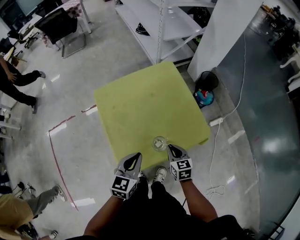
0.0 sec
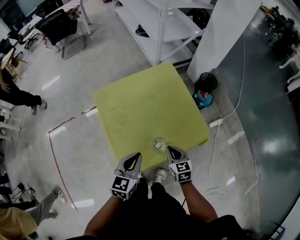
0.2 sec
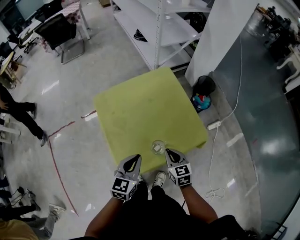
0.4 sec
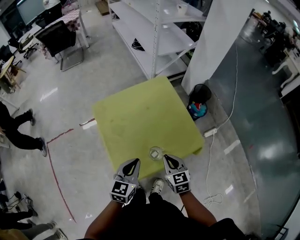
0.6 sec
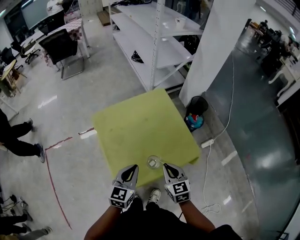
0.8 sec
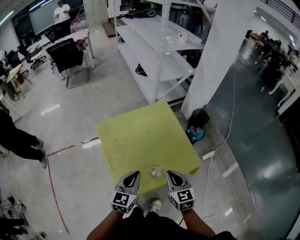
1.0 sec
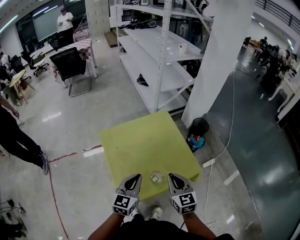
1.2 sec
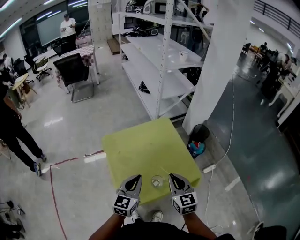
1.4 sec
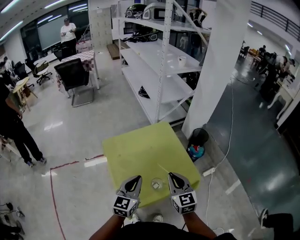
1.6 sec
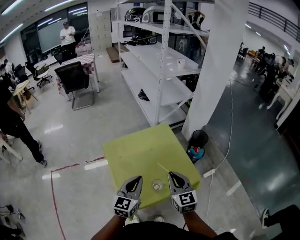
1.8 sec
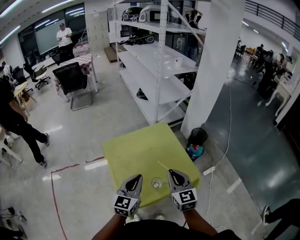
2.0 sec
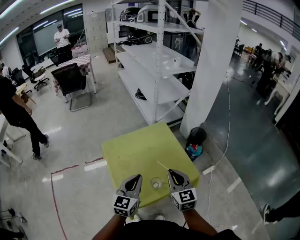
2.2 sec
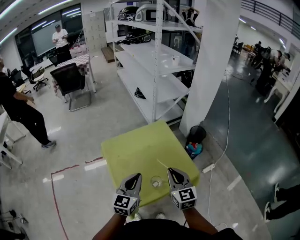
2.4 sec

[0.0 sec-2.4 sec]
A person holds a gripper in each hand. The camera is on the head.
0.0 sec to 1.2 sec: The left gripper heads upward, covering about 10 cm. Meanwhile the right gripper travels upward by about 20 cm.
1.2 sec to 2.4 sec: The grippers both shift upward by roughly 5 cm.

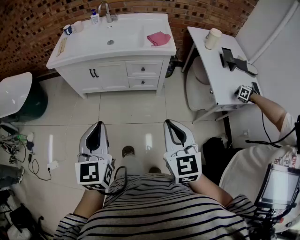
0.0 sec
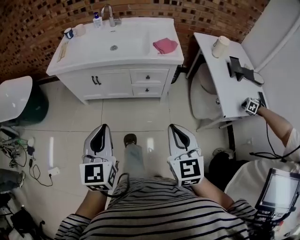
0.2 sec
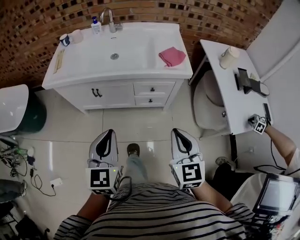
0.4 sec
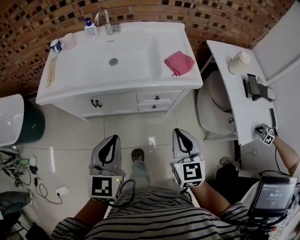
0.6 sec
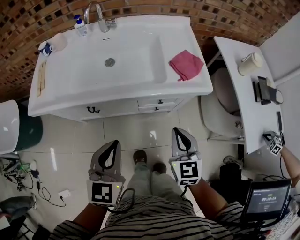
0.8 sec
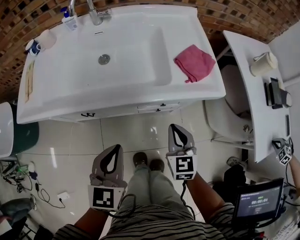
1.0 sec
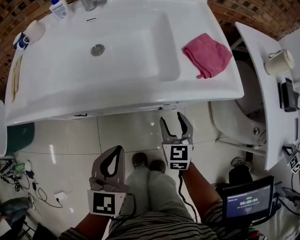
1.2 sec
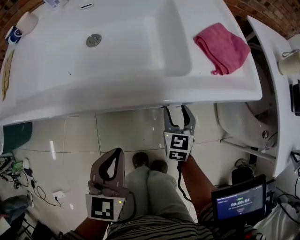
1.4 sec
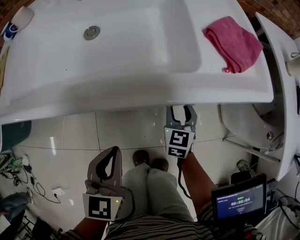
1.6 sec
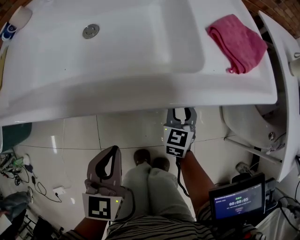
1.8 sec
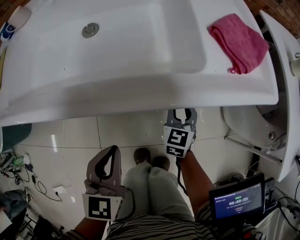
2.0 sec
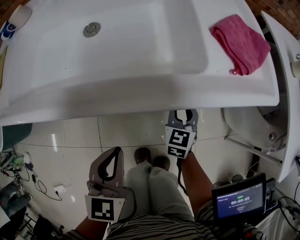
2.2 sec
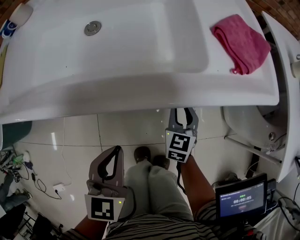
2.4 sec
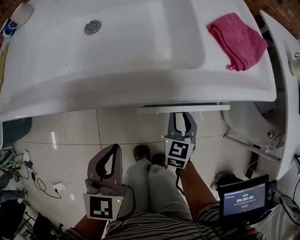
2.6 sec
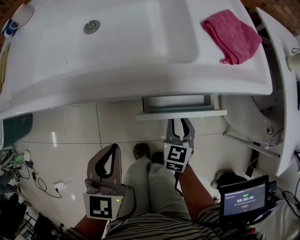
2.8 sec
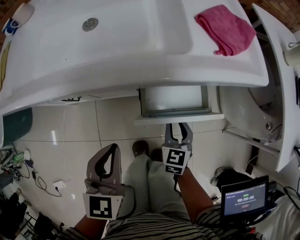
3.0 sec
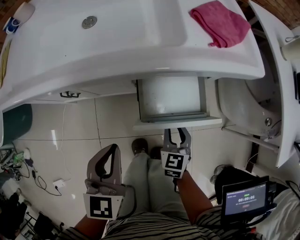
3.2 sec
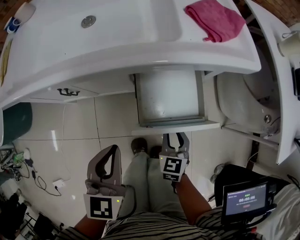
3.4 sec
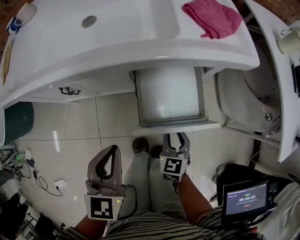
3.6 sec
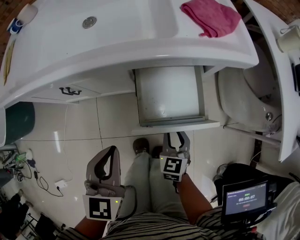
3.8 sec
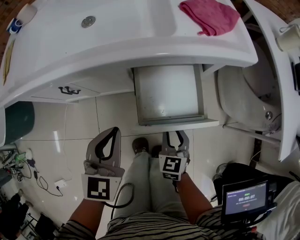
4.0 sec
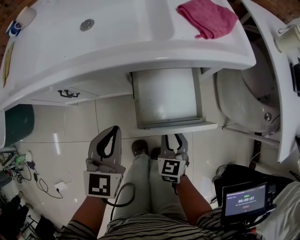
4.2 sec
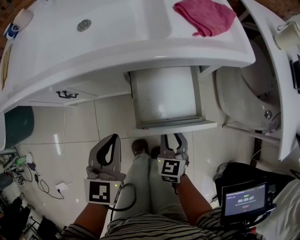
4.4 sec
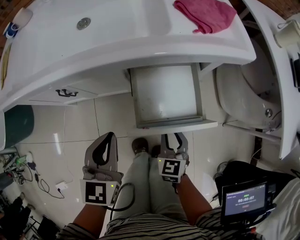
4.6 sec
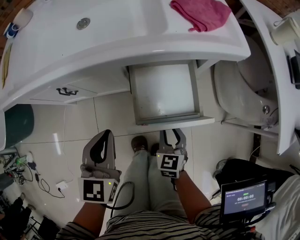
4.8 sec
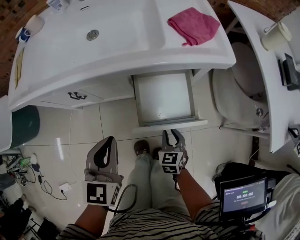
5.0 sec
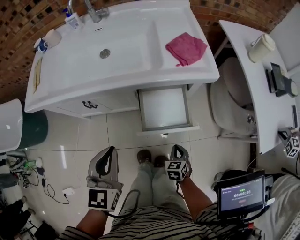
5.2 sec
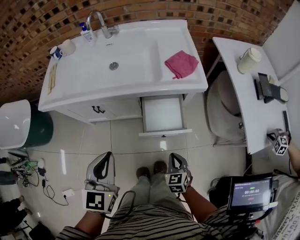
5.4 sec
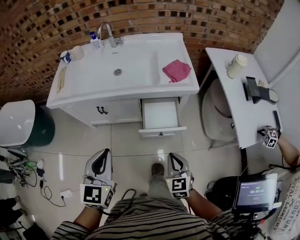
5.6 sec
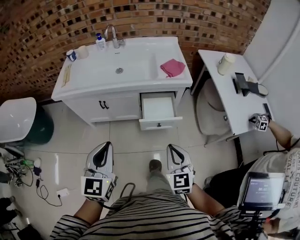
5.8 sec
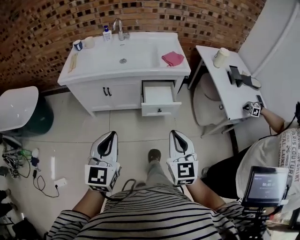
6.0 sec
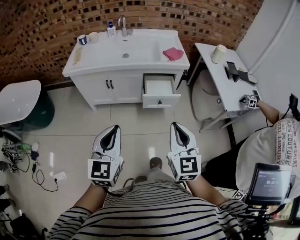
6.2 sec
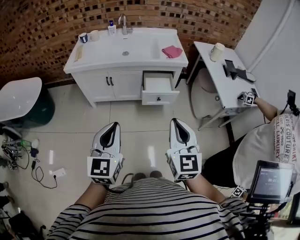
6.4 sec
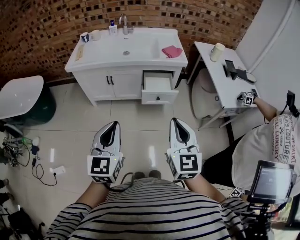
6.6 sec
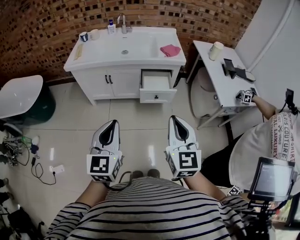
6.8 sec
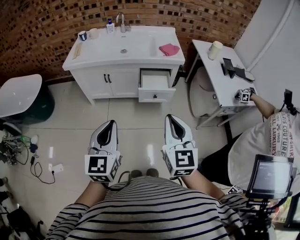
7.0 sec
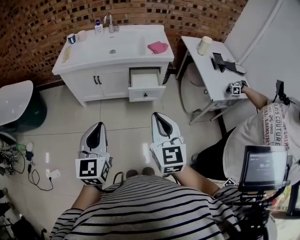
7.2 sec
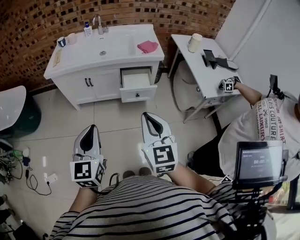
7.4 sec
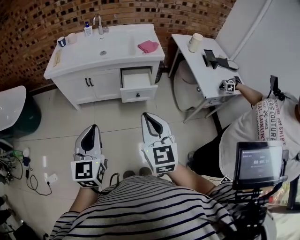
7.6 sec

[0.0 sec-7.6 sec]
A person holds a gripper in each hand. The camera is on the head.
0.0 sec to 1.6 sec: Both grippers are carried forward, some 50 cm. Both grippers move downward, approximately 40 cm. The right gripper rotates roughly 20 degrees, and opens its fingers, while the left gripper swivels roughly 20 degrees.
1.6 sec to 3.0 sec: The right gripper moves backward, roughly 10 cm.
3.0 sec to 4.6 sec: The right gripper heads backward, covering approximately 10 cm.
4.6 sec to 6.0 sec: The right gripper moves upward and backward, approximately 50 cm, changes its angle by approximately 30 degrees, and closes; the left gripper shifts about 50 cm backward and upward.
6.0 sec to 7.6 sec: The left gripper shifts approximately 10 cm backward, while the right gripper heads backward and upward, covering approximately 10 cm.

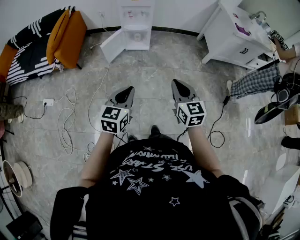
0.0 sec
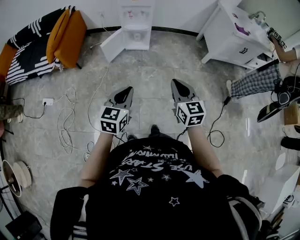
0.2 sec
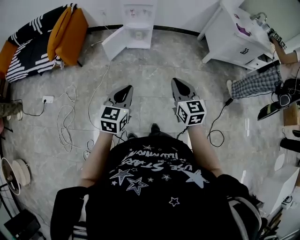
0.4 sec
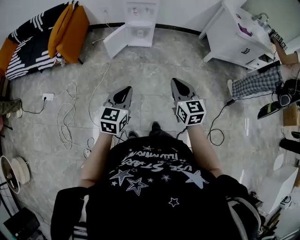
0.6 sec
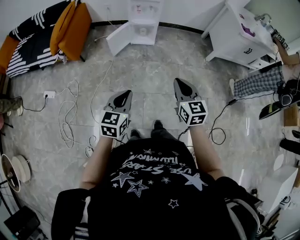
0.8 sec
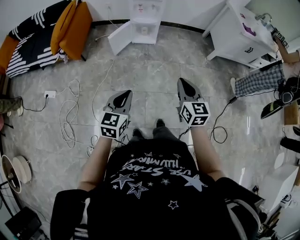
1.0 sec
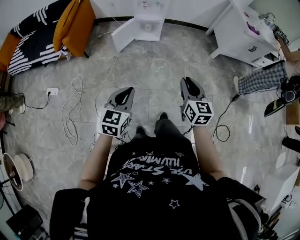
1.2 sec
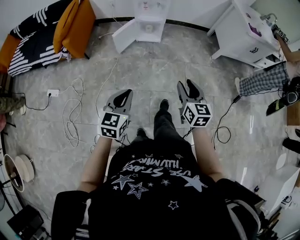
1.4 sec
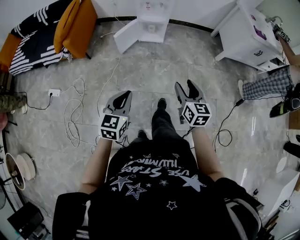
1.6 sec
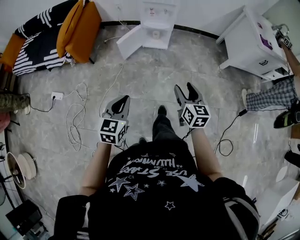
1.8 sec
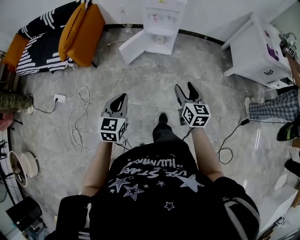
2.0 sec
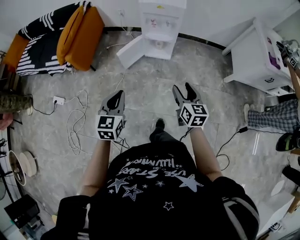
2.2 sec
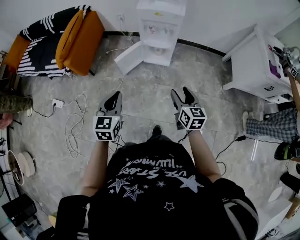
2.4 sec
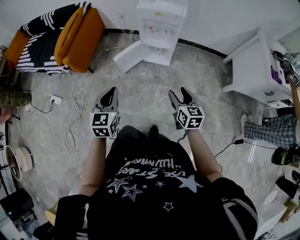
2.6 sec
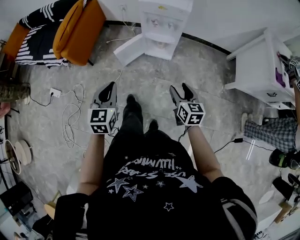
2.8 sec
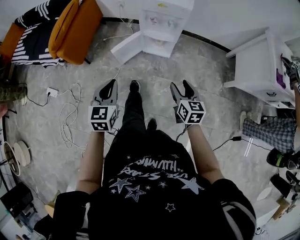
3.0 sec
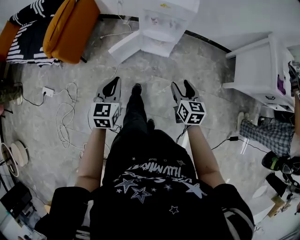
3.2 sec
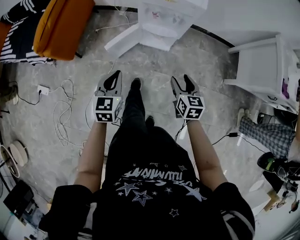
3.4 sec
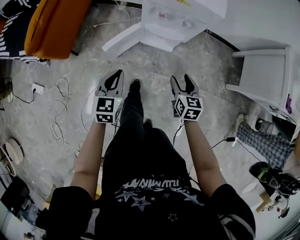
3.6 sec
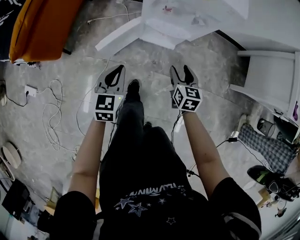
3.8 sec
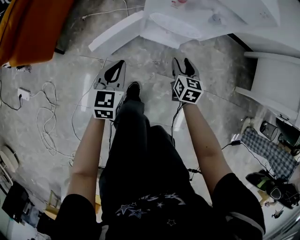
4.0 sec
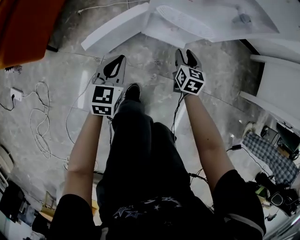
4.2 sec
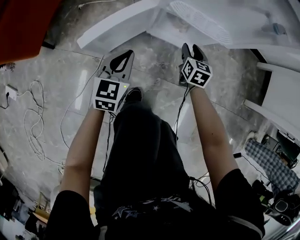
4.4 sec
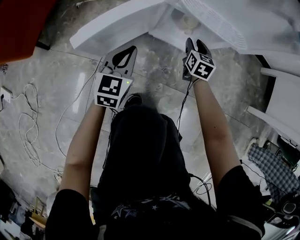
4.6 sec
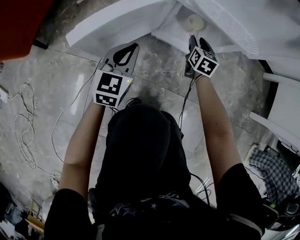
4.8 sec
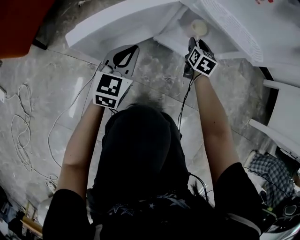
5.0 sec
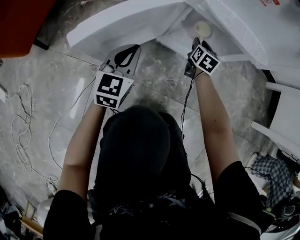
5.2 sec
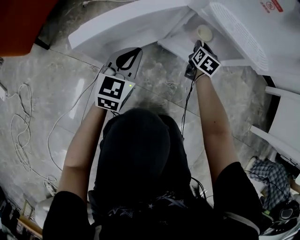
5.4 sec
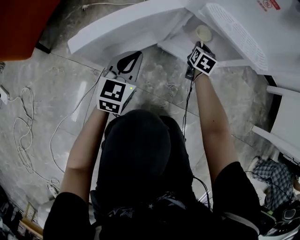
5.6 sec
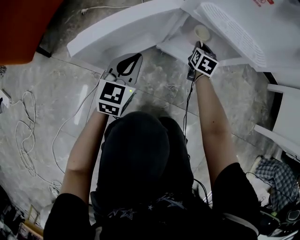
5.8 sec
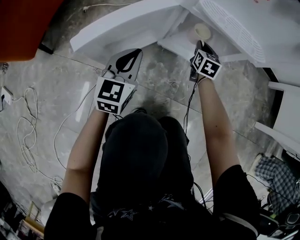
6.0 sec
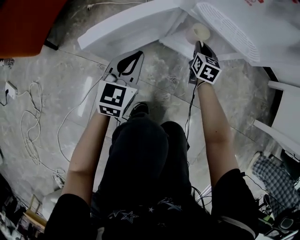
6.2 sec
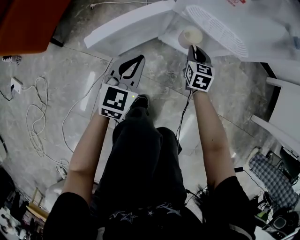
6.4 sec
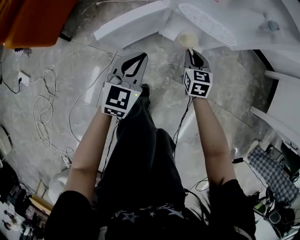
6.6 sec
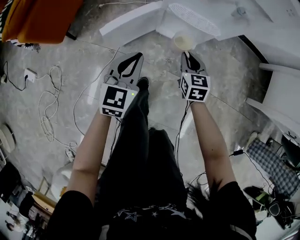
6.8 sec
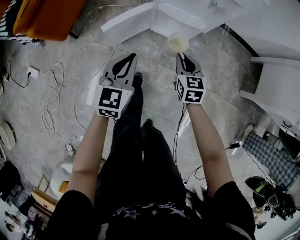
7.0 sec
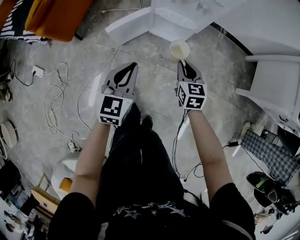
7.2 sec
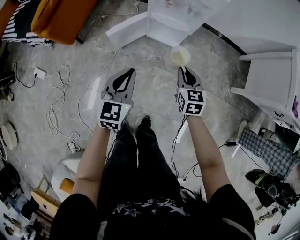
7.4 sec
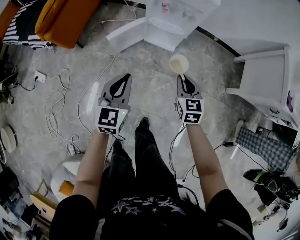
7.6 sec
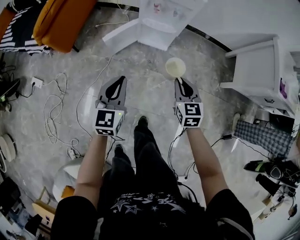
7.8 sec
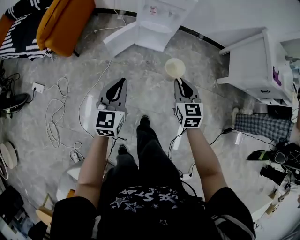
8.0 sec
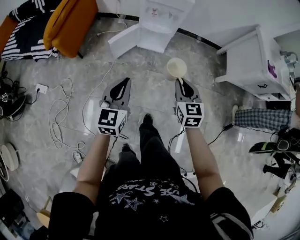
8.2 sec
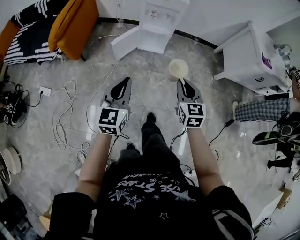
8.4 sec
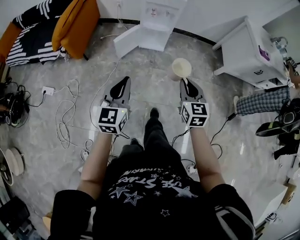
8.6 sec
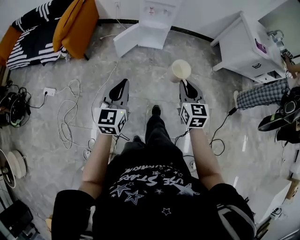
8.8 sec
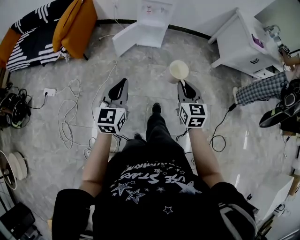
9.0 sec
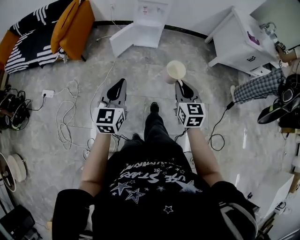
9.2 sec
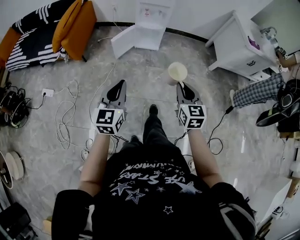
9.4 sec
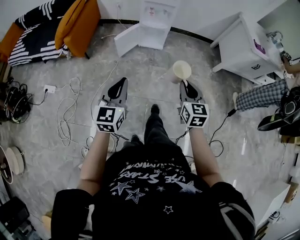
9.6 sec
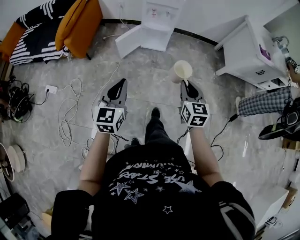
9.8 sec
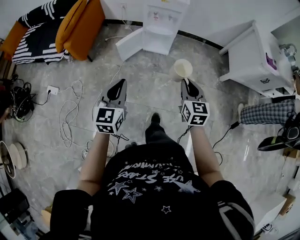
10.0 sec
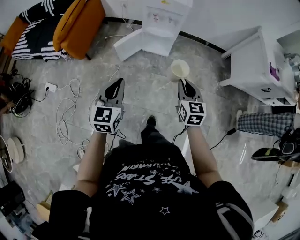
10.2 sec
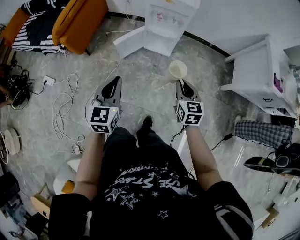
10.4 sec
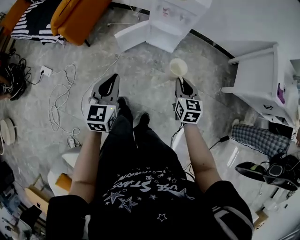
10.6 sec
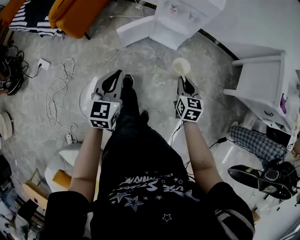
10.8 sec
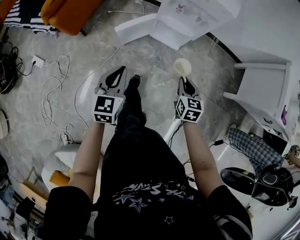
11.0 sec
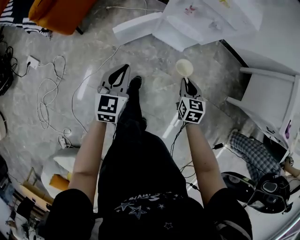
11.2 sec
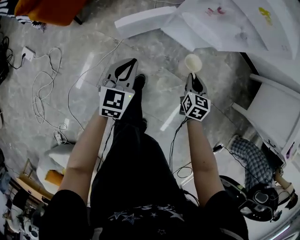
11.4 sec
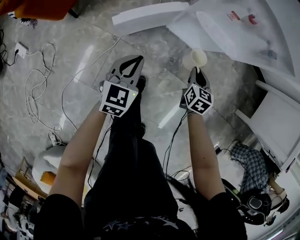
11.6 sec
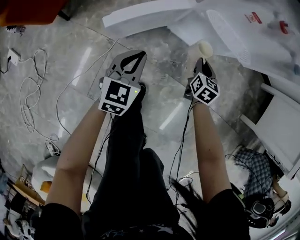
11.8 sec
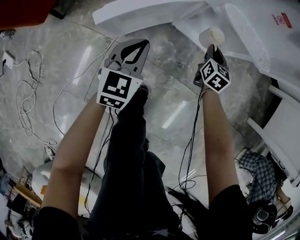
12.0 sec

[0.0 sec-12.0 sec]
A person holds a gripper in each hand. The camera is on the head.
0.0 sec to 1.6 sec: The right gripper is displaced to the left and downward by about 10 cm, and opens; the left gripper goes some 10 cm to the left.
1.6 sec to 3.0 sec: Both grippers move forward, roughly 30 cm. The left gripper swivels some 20 degrees.
3.0 sec to 4.4 sec: The grippers both shift downward and forward by roughly 60 cm.
4.4 sec to 6.0 sec: The left gripper goes approximately 10 cm downward; the right gripper goes about 15 cm downward and forward, and closes its fingers.
6.0 sec to 7.6 sec: The two grippers go about 60 cm upward and backward.
7.6 sec to 9.0 sec: Both grippers move backward and upward, approximately 40 cm.
9.0 sec to 10.4 sec: Both grippers travel together forward, about 25 cm.
10.4 sec to 12.0 sec: The grippers both shift downward and forward by about 70 cm.

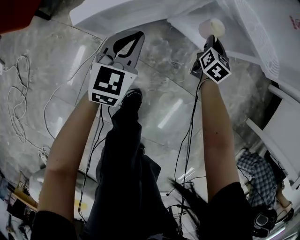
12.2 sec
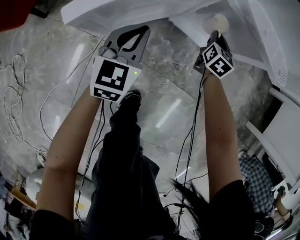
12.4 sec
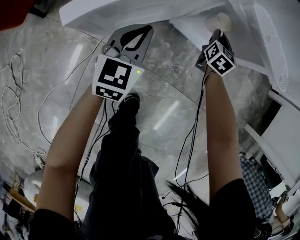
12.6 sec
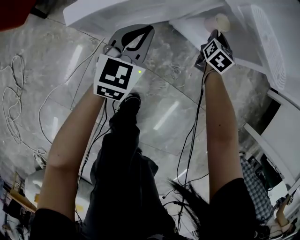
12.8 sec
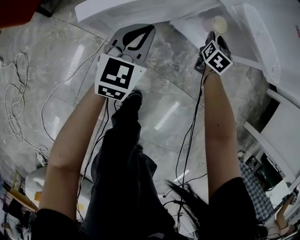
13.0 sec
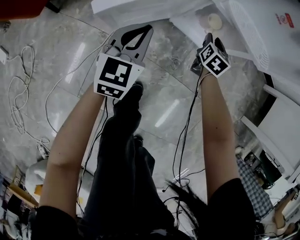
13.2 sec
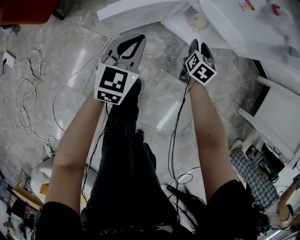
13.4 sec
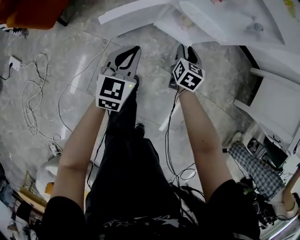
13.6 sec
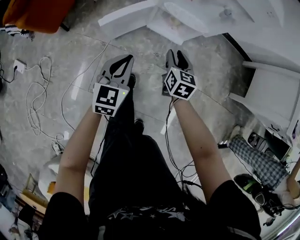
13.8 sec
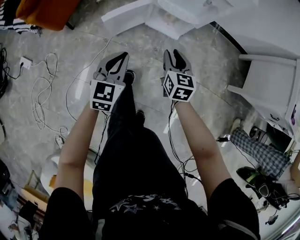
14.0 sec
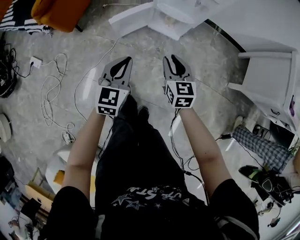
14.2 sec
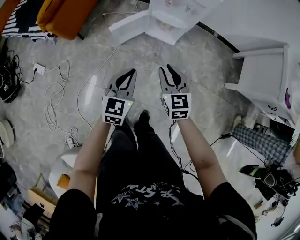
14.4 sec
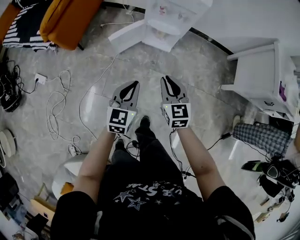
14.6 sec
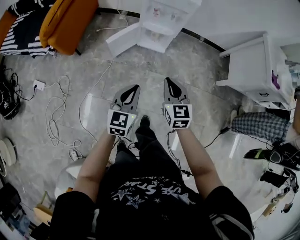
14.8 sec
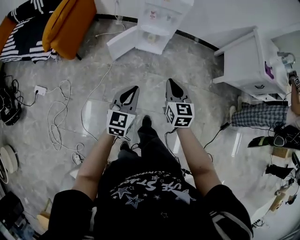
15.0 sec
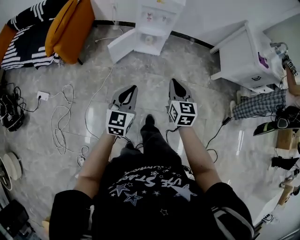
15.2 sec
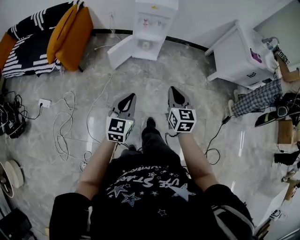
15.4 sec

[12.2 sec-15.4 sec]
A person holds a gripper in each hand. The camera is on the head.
12.2 sec to 13.8 sec: Both grippers move upward and backward, about 35 cm. The right gripper opens.
13.8 sec to 15.4 sec: The two grippers go roughly 50 cm backward and upward. The right gripper closes its fingers.
